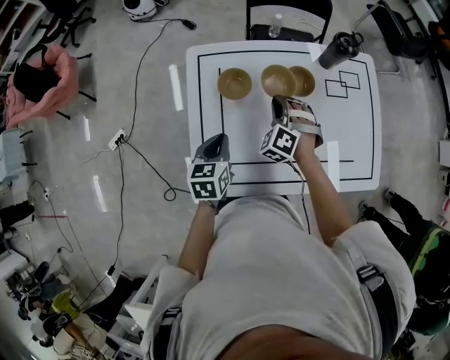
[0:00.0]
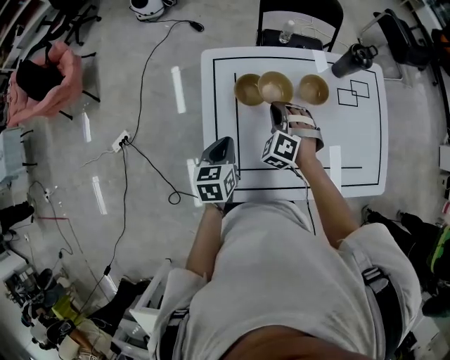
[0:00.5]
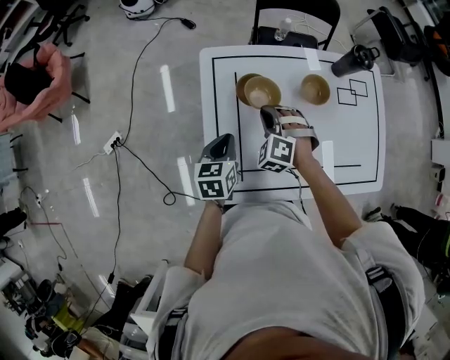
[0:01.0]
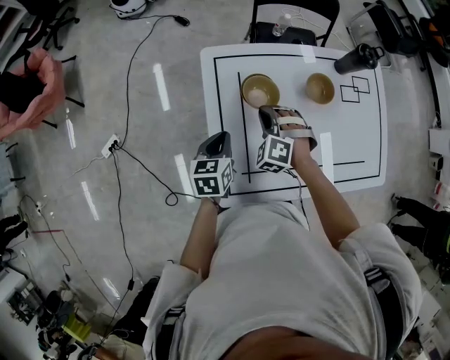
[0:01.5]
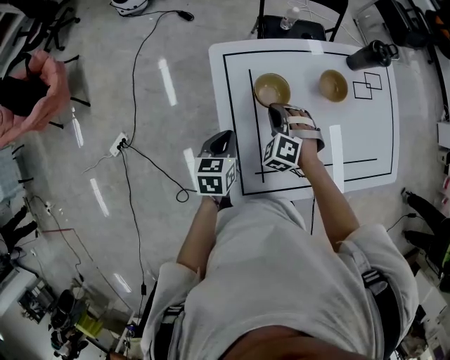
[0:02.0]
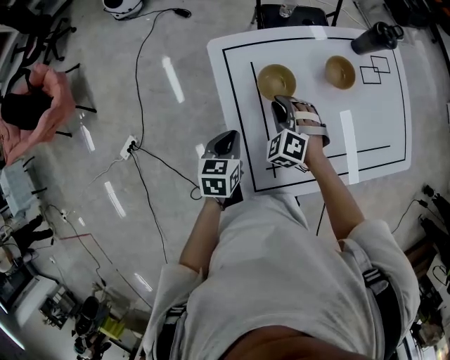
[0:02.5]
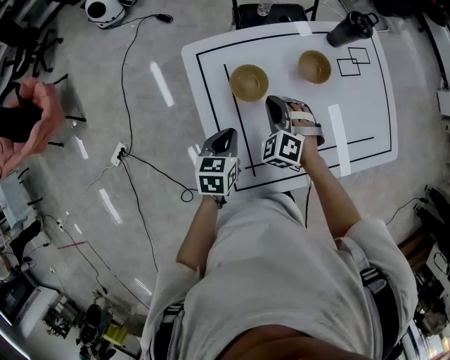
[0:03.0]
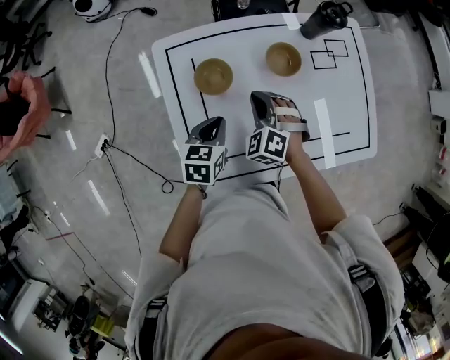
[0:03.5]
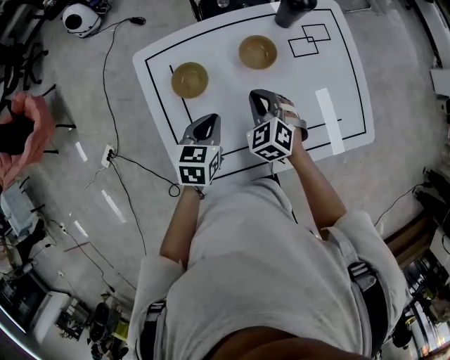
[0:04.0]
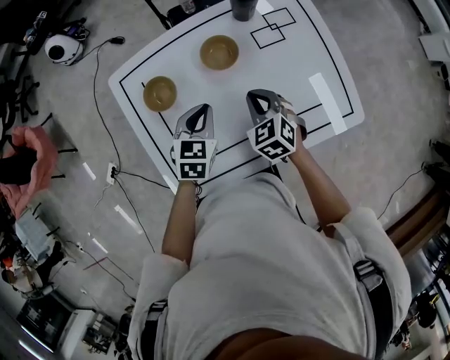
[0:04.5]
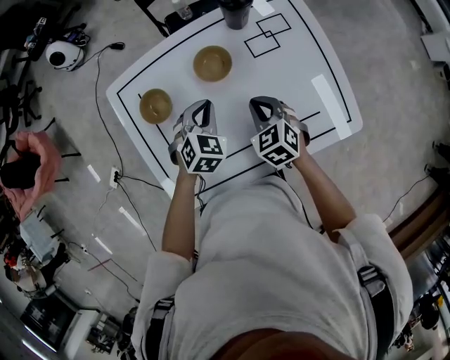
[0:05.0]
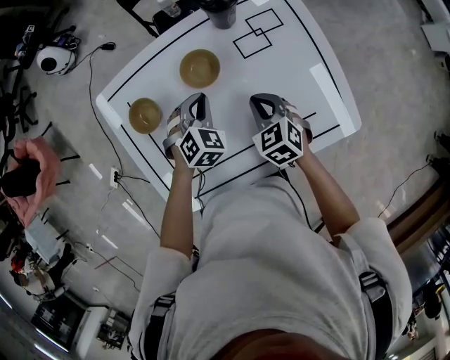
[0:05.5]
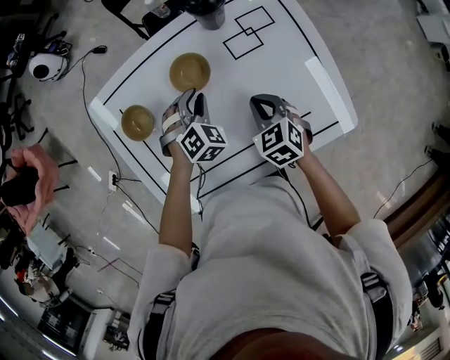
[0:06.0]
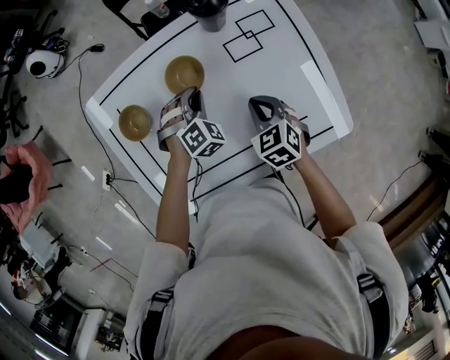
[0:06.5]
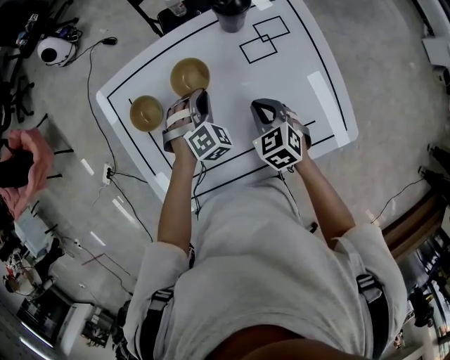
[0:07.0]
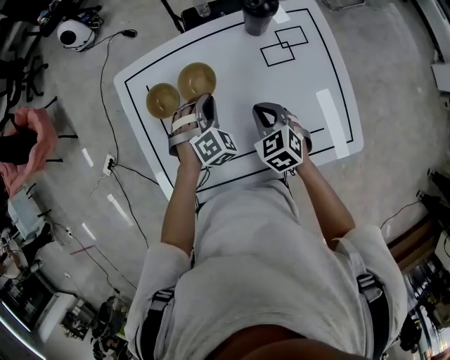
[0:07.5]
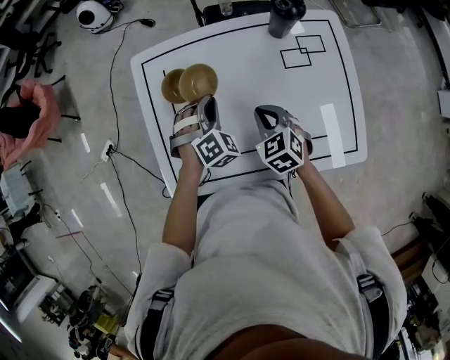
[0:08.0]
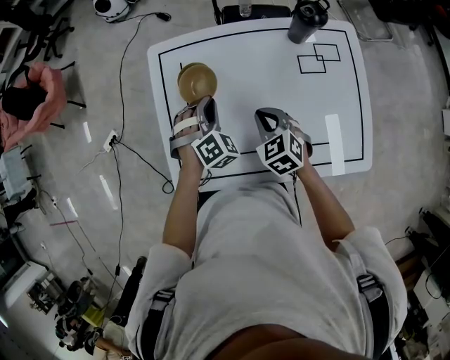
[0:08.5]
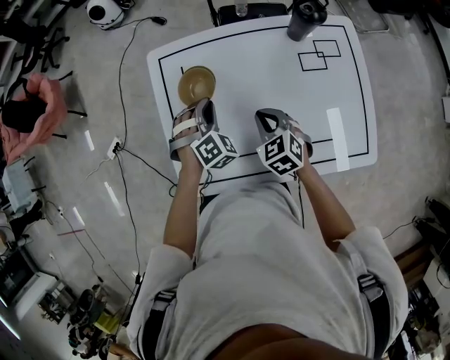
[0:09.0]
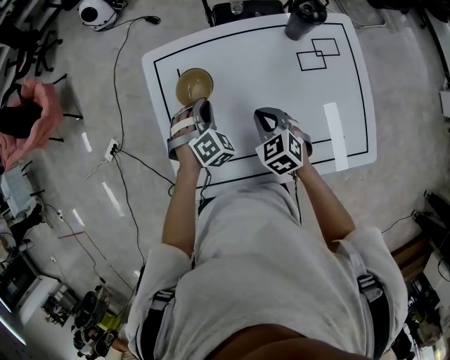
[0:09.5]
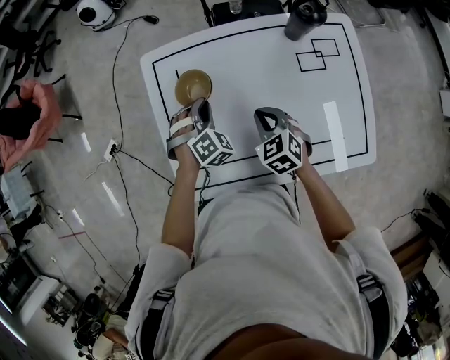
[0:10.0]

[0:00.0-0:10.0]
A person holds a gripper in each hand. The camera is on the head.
0:00.0 to 0:02.0: The two grippers go approximately 15 cm to the left.
0:02.0 to 0:04.0: The two grippers go some 20 cm to the right. The right gripper swivels about 30 degrees.
0:04.0 to 0:06.0: The right gripper is displaced to the right by roughly 20 cm. The left gripper travels to the right, forward and downward by some 20 cm, rotates around the line of its fingers by some 60 degrees, clockwise from behind, and opens its fingers.
0:06.0 to 0:08.0: The left gripper moves to the left and upward, approximately 15 cm; the right gripper goes some 10 cm to the left.
0:08.0 to 0:10.0: The right gripper shifts by roughly 5 cm. Meanwhile the left gripper travels to the left by approximately 5 cm.

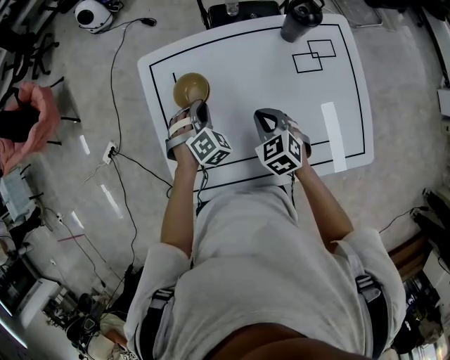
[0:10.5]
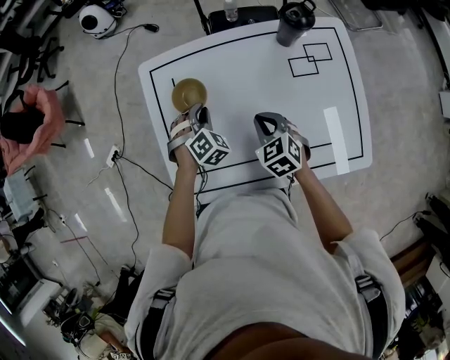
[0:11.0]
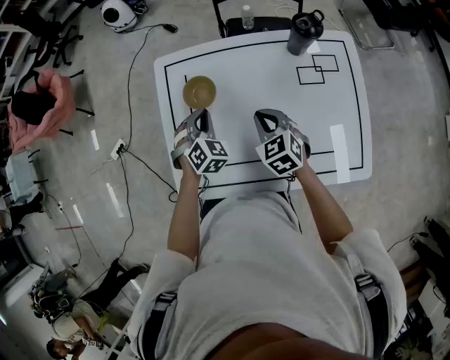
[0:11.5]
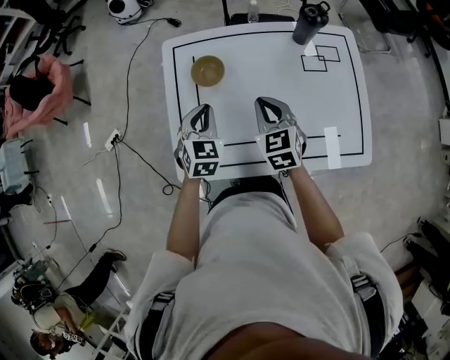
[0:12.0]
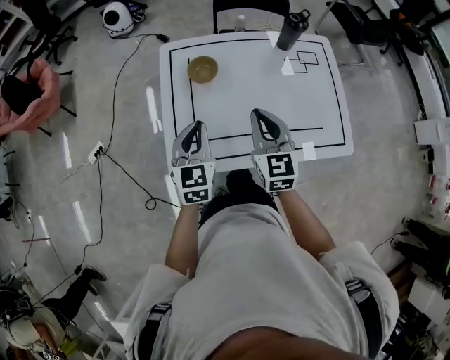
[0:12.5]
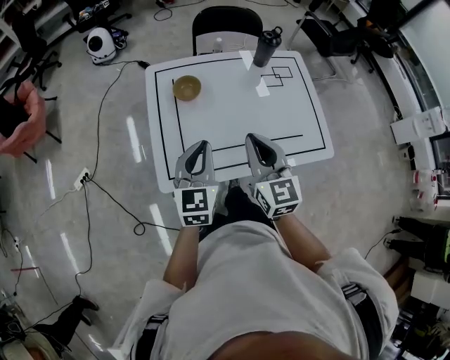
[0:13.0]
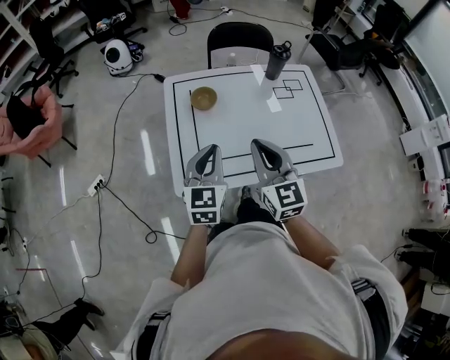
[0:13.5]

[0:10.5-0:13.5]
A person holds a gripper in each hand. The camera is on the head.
0:10.5 to 0:12.0: The left gripper shifts about 15 cm upward and backward, and rotates around the line of its fingers by some 40 degrees, counterclockwise from behind. Meanwhile the right gripper travels upward by some 10 cm.
0:12.0 to 0:13.5: Both grippers travel together backward and upward, about 25 cm. The left gripper changes its angle by some 30 degrees. The right gripper swivels about 30 degrees.

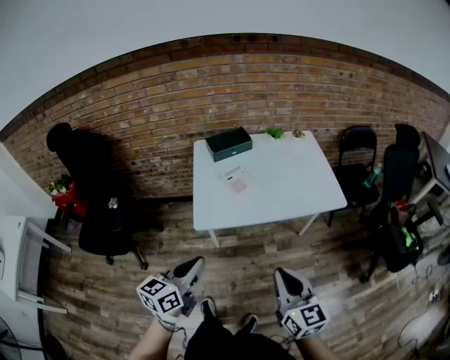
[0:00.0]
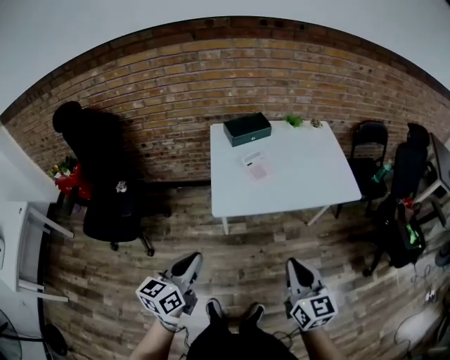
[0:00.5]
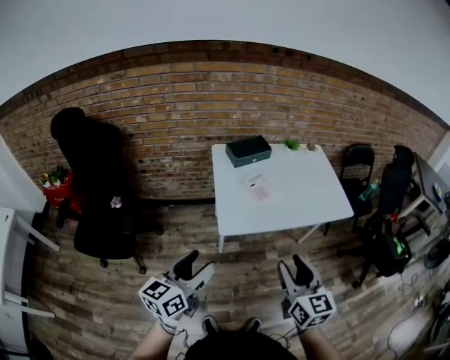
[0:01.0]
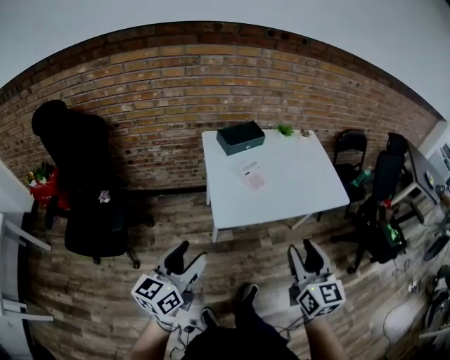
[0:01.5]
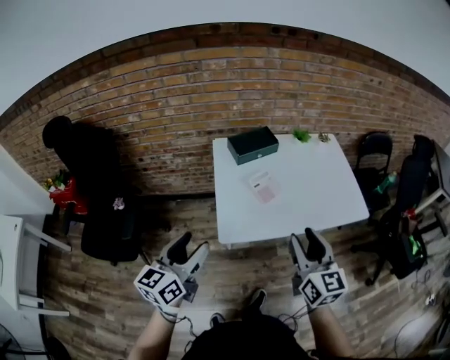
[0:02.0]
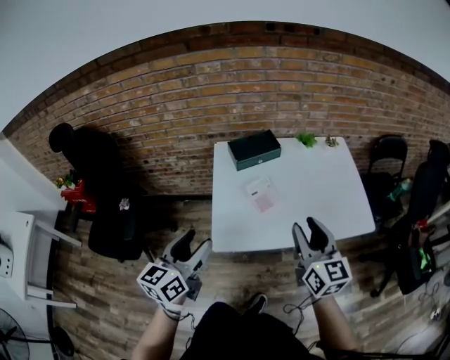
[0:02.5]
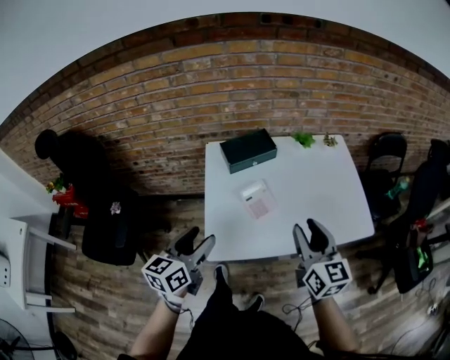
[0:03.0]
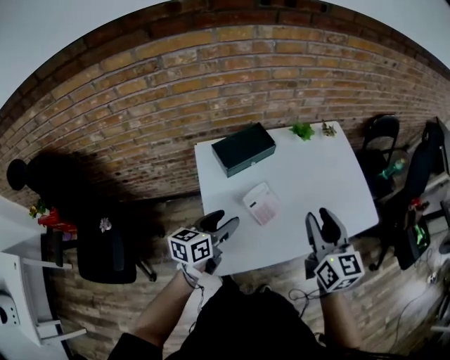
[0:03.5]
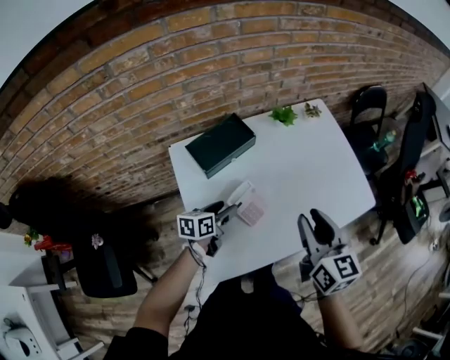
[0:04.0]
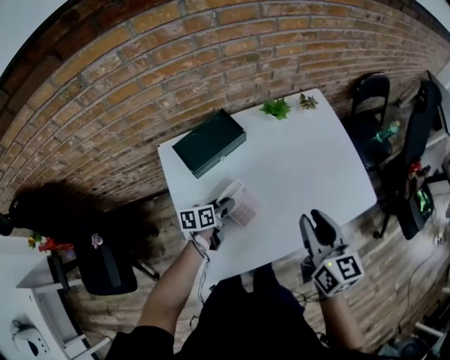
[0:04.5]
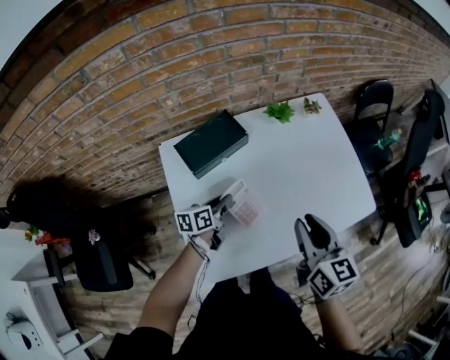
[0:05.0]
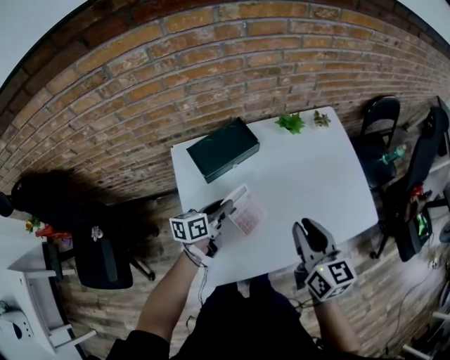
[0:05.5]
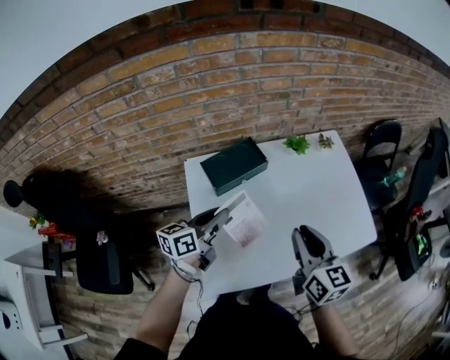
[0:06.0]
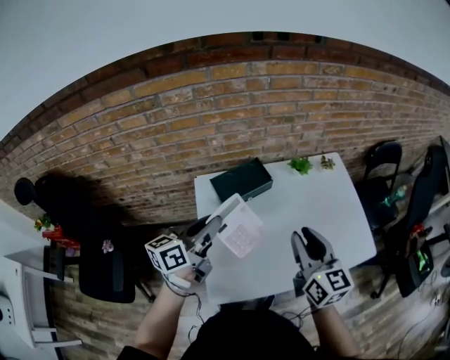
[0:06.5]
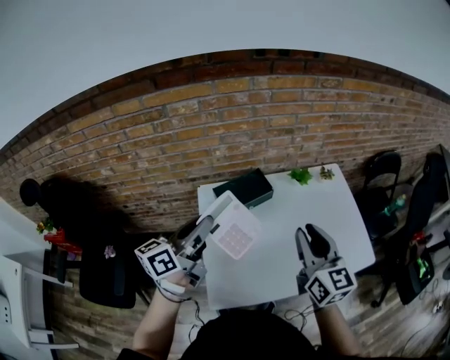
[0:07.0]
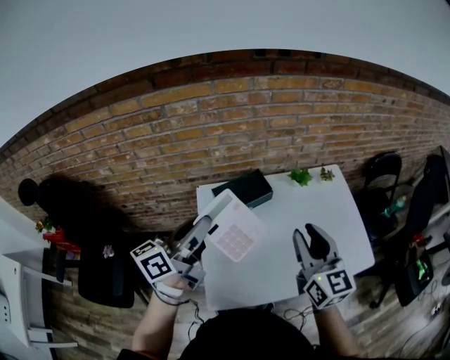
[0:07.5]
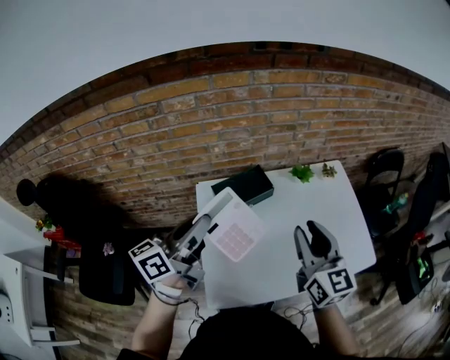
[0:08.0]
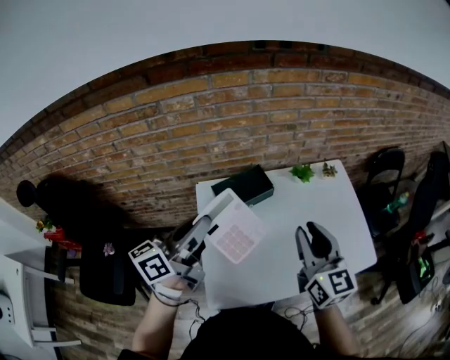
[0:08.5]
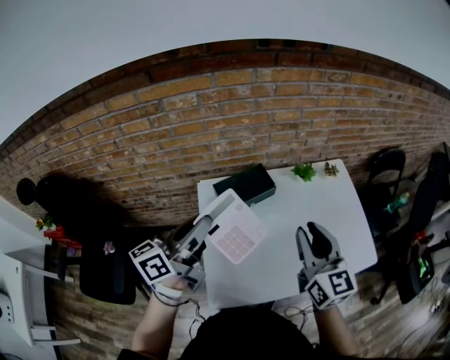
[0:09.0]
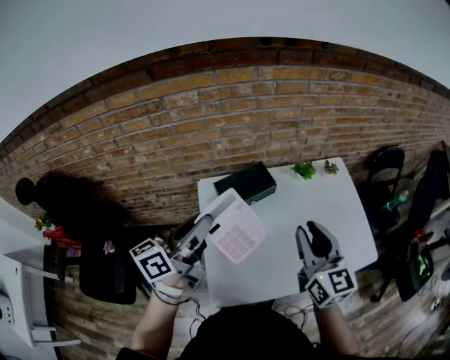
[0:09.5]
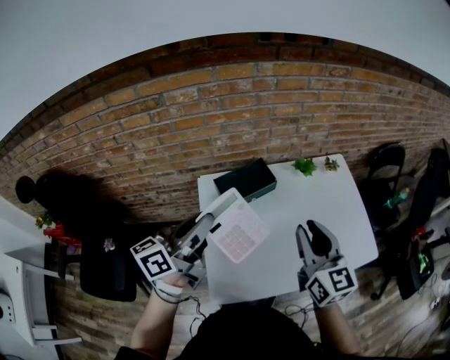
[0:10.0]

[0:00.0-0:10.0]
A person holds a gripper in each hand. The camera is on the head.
0:00.0 to 0:02.0: The left gripper shifts approximately 20 cm to the left and forward, and opens, while the right gripper is displaced forward and to the left by roughly 25 cm, and opens up.
0:02.0 to 0:04.0: The left gripper moves approximately 50 cm, and rotates roughly 40 degrees. The right gripper moves approximately 30 cm.
0:04.0 to 0:06.0: The left gripper travels upward by some 15 cm, turns by roughly 20 degrees, and closes.
0:06.0 to 0:08.0: The right gripper shifts roughly 10 cm upward, while the left gripper moves upward, roughly 20 cm.
0:08.0 to 0:10.0: The grippers move only a little.

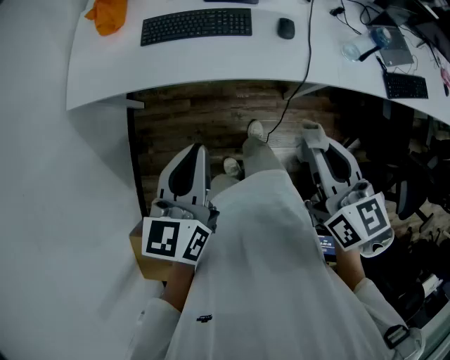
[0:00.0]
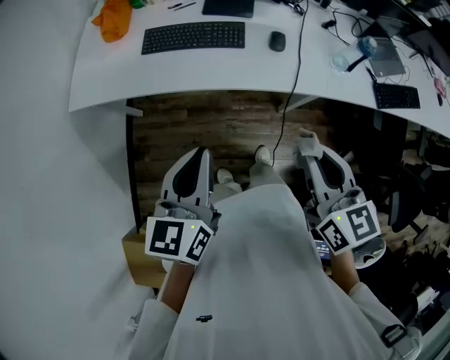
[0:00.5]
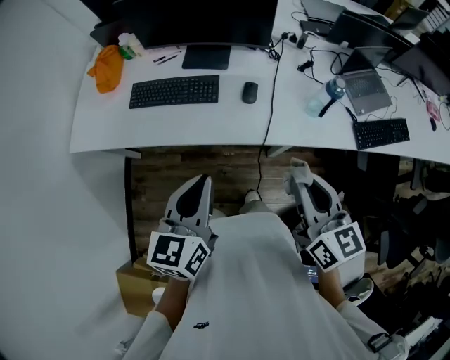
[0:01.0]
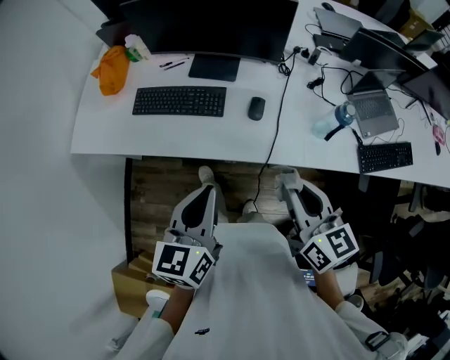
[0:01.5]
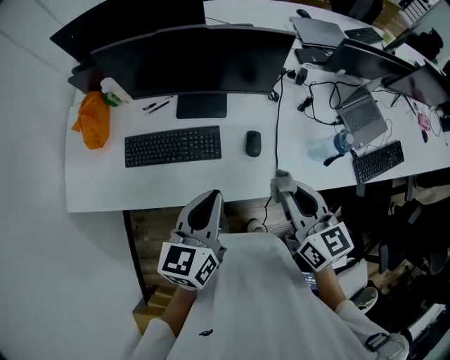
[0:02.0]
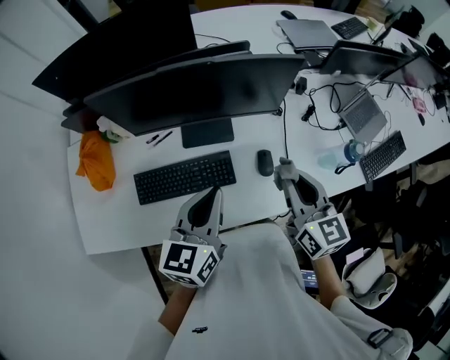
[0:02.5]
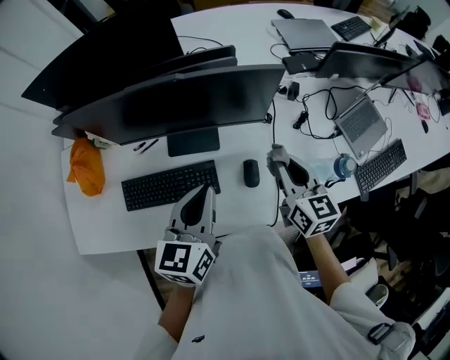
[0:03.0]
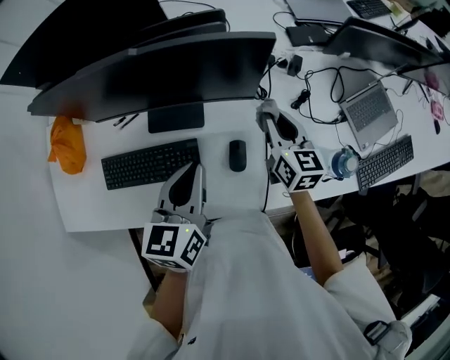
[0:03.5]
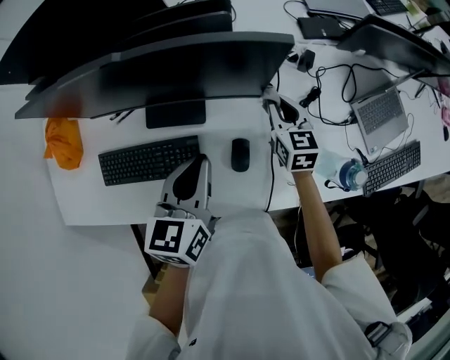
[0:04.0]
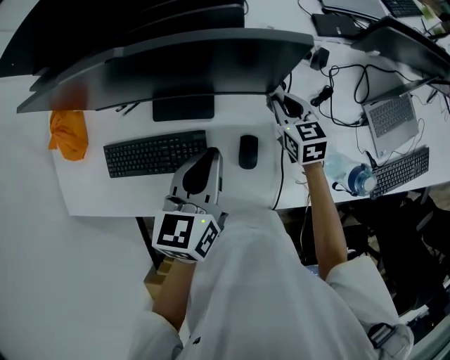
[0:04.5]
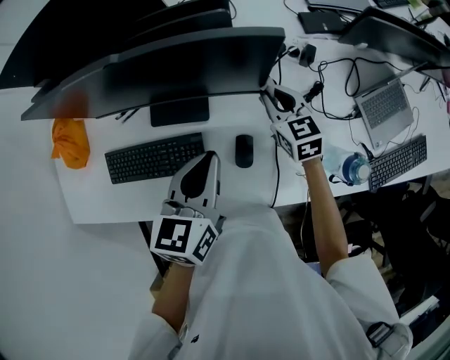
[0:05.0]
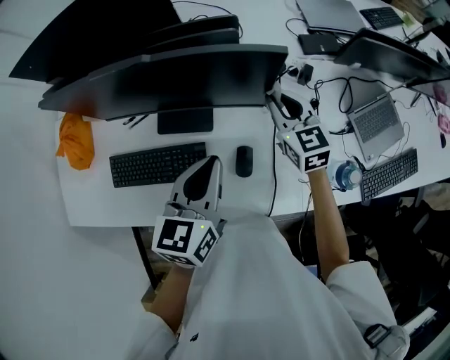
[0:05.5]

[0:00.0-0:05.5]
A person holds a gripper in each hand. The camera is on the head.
0:00.0 to 0:02.0: The right gripper travels forward by roughly 25 cm, while the left gripper is displaced forward and to the right by approximately 30 cm.
0:02.0 to 0:03.5: The left gripper travels forward by about 20 cm. Meanwhile the right gripper moves forward and downward, roughly 30 cm.
0:03.5 to 0:05.5: The right gripper goes some 5 cm forward, travels downward and back again, approximately 10 cm each way, and swivels roughly 20 degrees.
